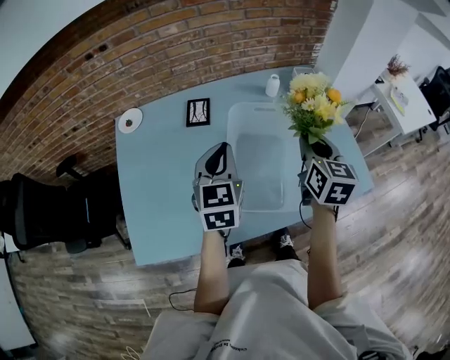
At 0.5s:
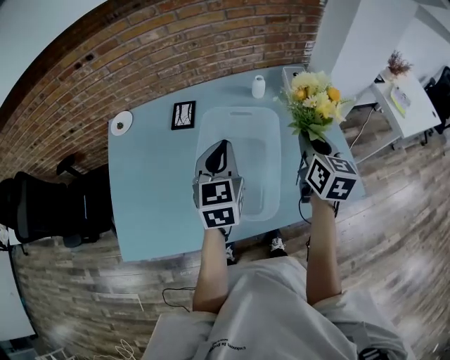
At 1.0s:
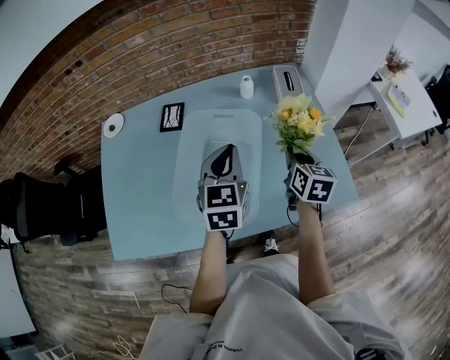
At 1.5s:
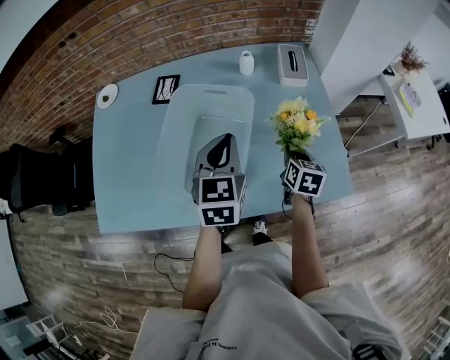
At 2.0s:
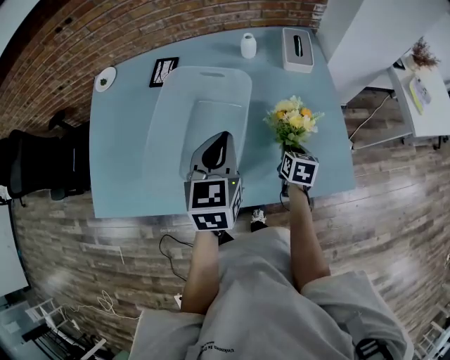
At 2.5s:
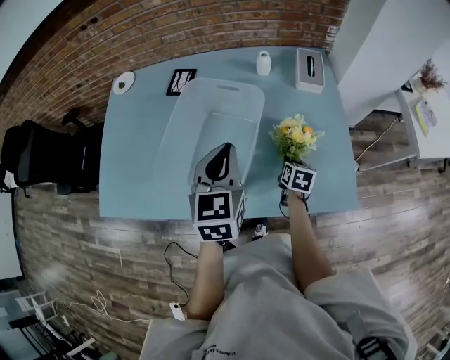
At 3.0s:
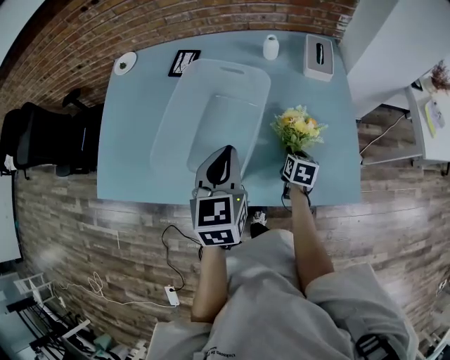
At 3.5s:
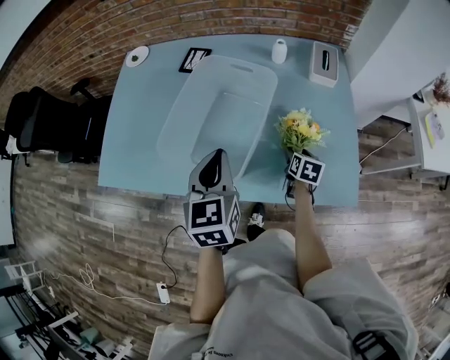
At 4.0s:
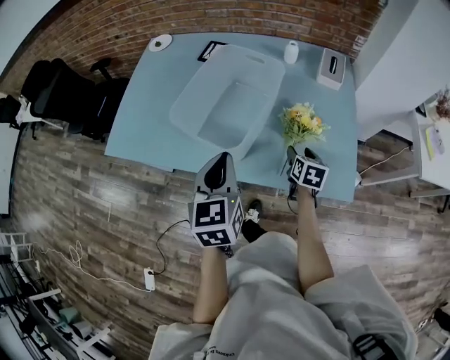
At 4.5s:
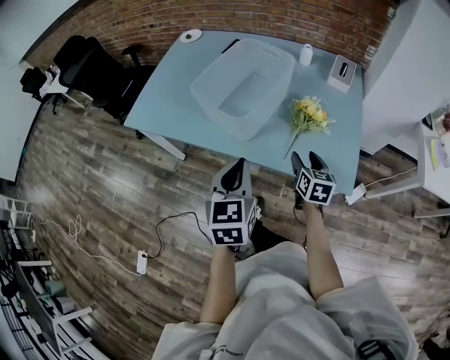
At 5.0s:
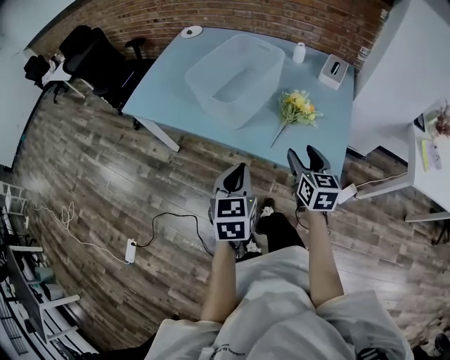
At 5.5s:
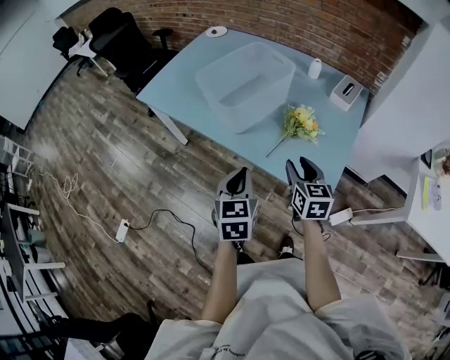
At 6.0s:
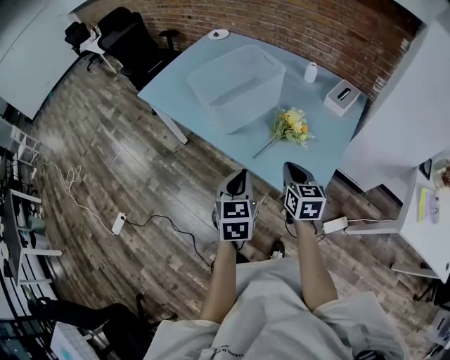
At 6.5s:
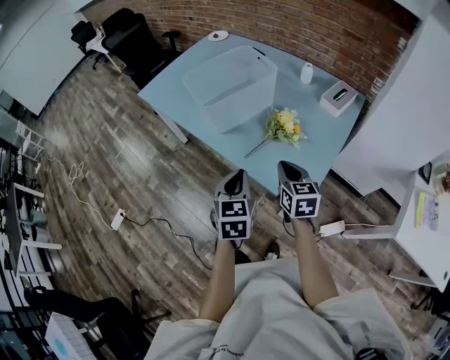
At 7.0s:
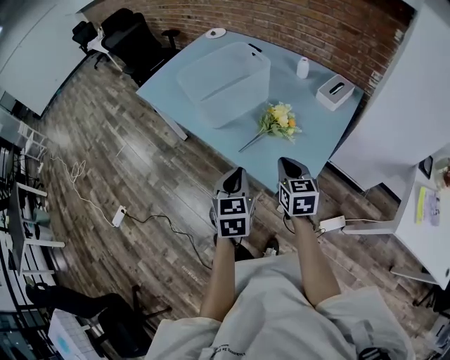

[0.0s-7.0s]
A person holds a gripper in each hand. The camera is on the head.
0.0s to 2.0s: The right gripper heads downward and to the right, covering about 35 cm, and swivels about 30 degrees. The left gripper is displaced to the right by some 20 cm.
2.0s to 3.5s: The right gripper opens its fingers. Meanwhile the left gripper heads backward and to the left, covering some 10 cm.
3.5s to 5.0s: The right gripper is displaced backward and upward by roughly 30 cm, and swivels approximately 40 degrees, while the left gripper shifts some 25 cm backward.
5.0s to 7.0s: The right gripper moves to the right, about 10 cm, rotates approximately 20 degrees, and closes its fingers. The left gripper goes about 15 cm to the right.

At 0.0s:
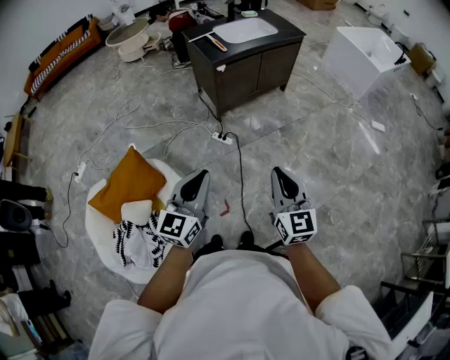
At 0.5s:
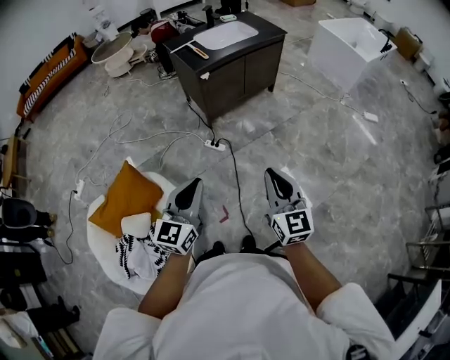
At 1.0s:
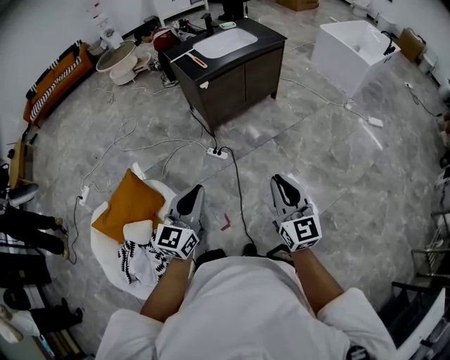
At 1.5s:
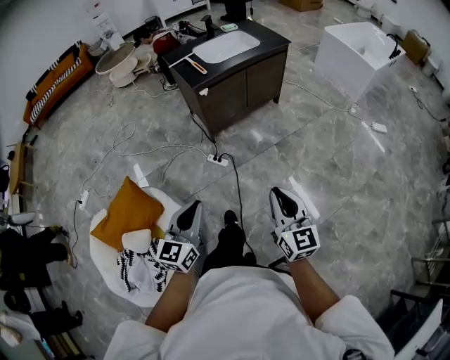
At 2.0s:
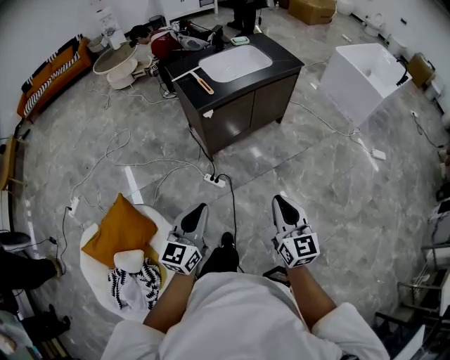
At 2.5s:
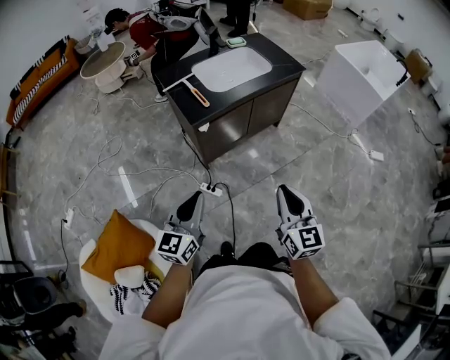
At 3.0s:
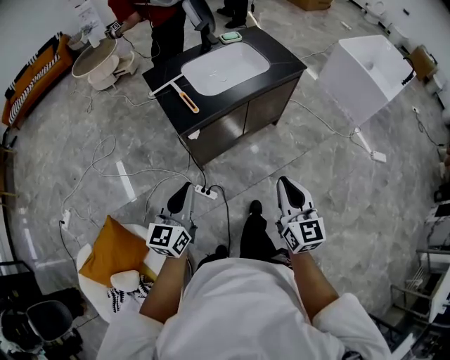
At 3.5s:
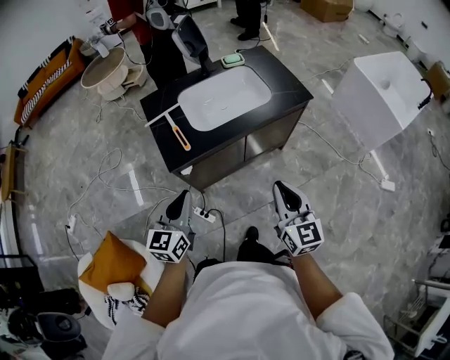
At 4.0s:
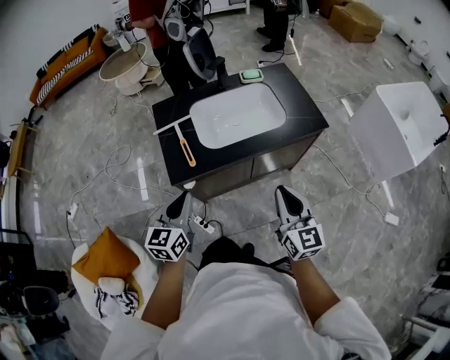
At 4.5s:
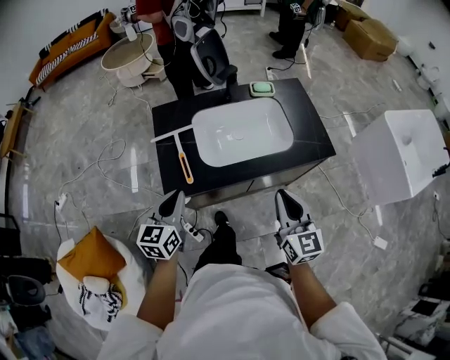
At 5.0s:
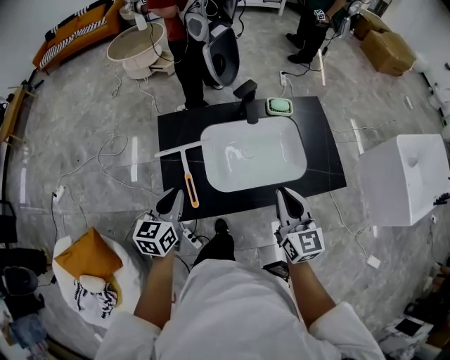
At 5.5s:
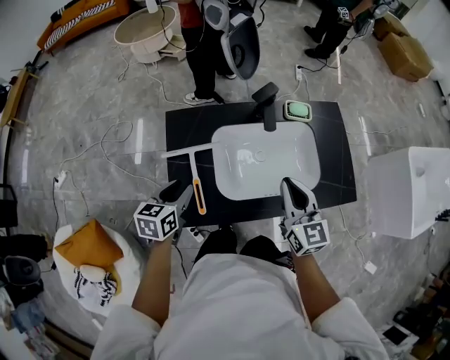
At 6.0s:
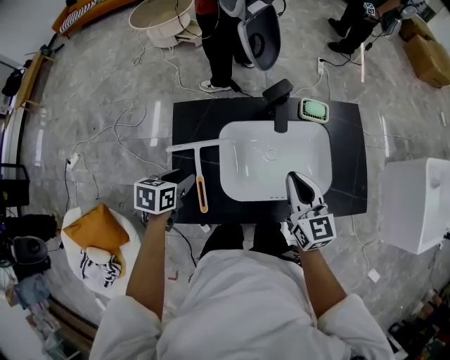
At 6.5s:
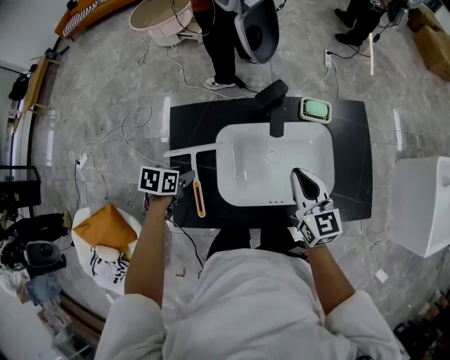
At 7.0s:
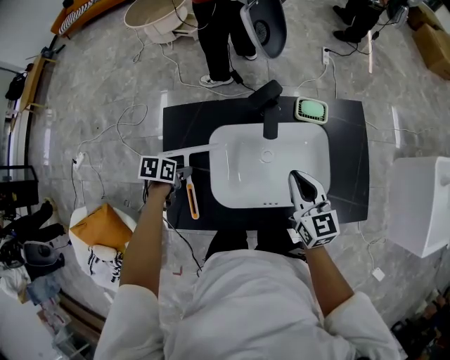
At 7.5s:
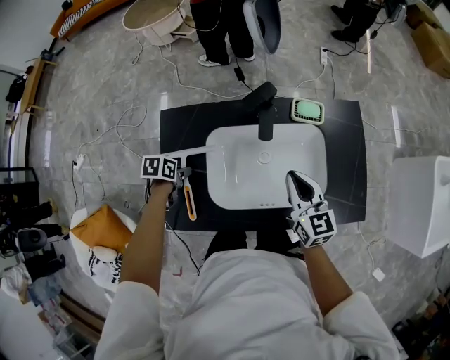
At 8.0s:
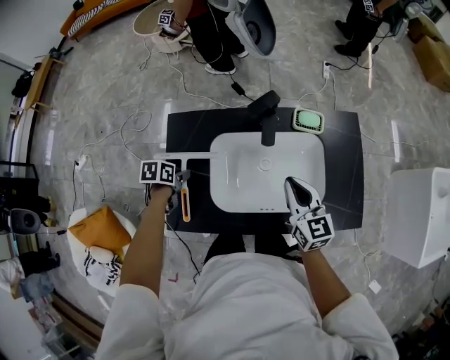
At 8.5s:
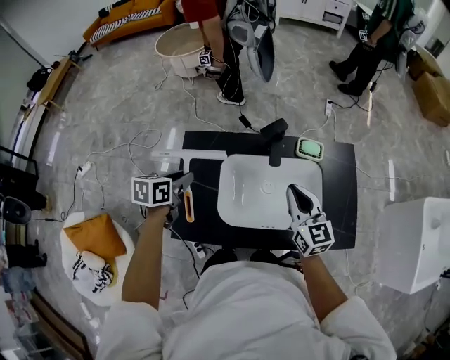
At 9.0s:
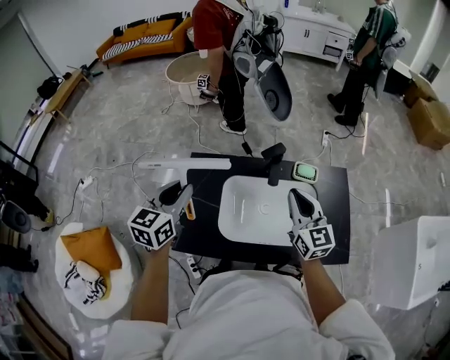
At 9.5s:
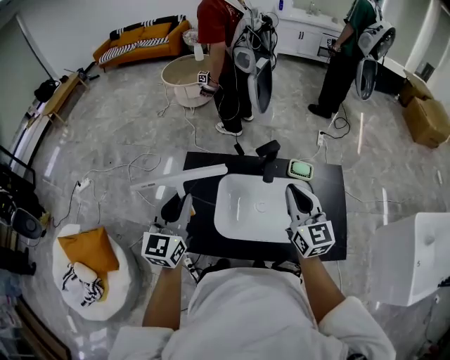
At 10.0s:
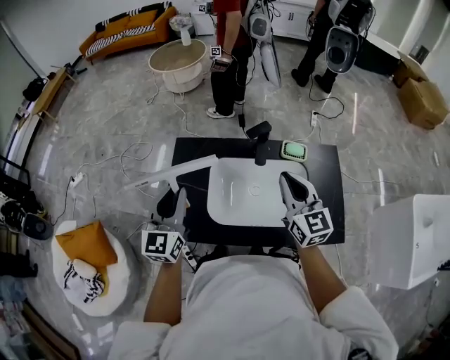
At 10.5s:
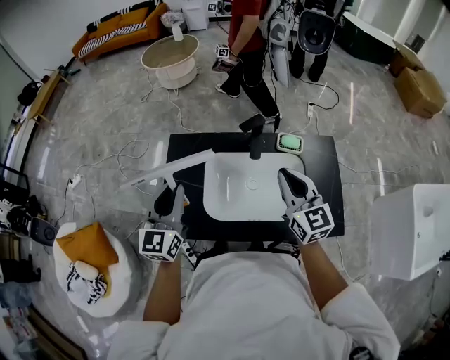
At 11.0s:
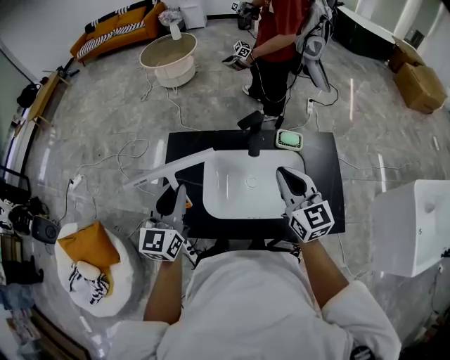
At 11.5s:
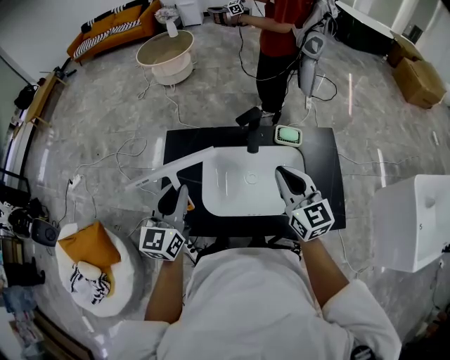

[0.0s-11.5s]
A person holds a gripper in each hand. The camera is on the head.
0.0s to 2.0s: Both grippers move forward, roughly 25 cm.
2.0s to 4.0s: The two grippers travel together, forward, some 50 cm. The left gripper rotates about 20 degrees.
4.0s to 6.0s: The right gripper shifts approximately 35 cm forward, and turns by about 20 degrees. The left gripper travels forward and downward by some 30 cm, points its fingers some 40 degrees further downward, and opens up.
6.0s to 7.5s: The left gripper is displaced downward and forward by approximately 10 cm, and swivels about 20 degrees. Meanwhile the right gripper moves forward, some 5 cm.
7.5s to 9.5s: The left gripper goes roughly 35 cm upward, and angles its fingers upward, by approximately 60 degrees; the right gripper is displaced upward by some 15 cm, and changes its angle by roughly 20 degrees.
9.5s to 11.5s: The left gripper shifts by approximately 5 cm.

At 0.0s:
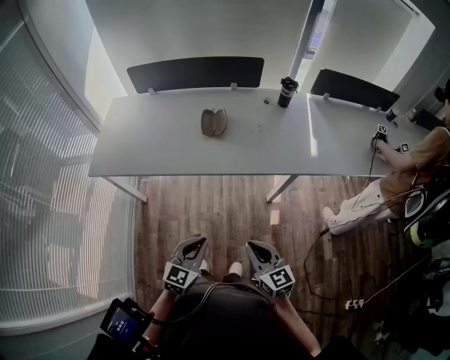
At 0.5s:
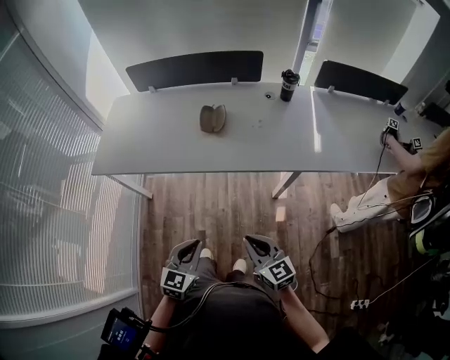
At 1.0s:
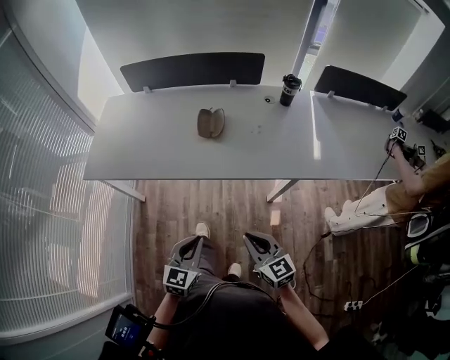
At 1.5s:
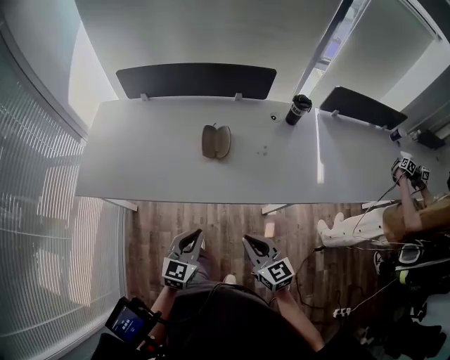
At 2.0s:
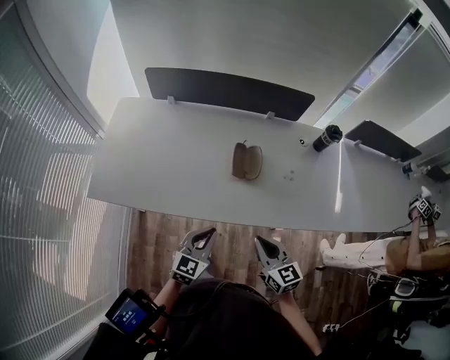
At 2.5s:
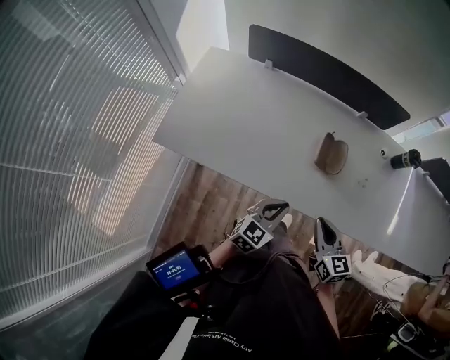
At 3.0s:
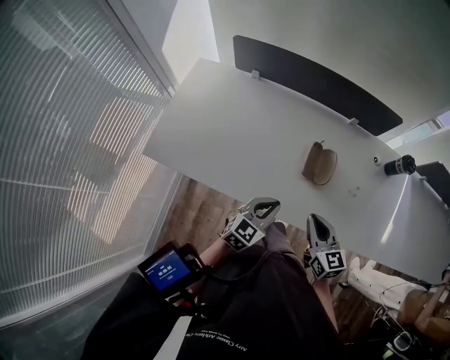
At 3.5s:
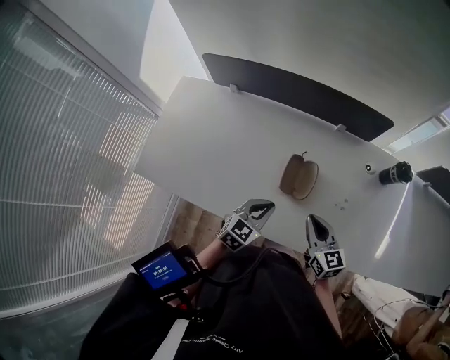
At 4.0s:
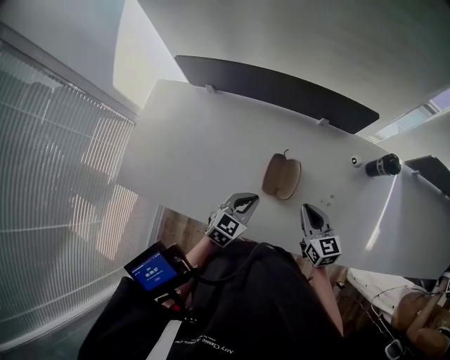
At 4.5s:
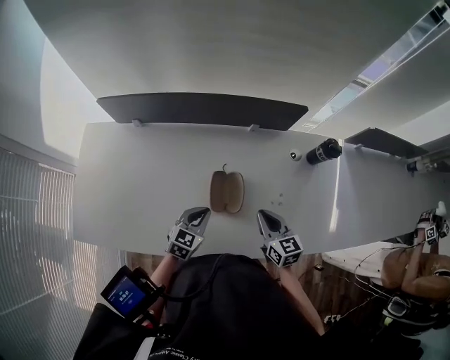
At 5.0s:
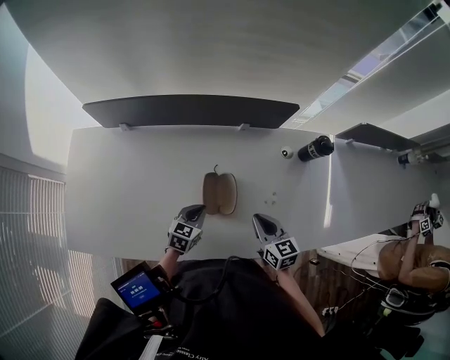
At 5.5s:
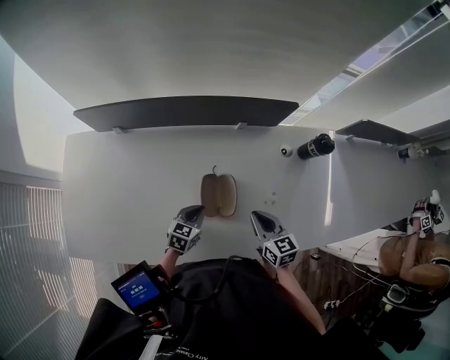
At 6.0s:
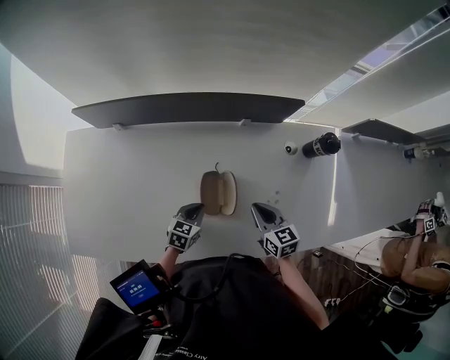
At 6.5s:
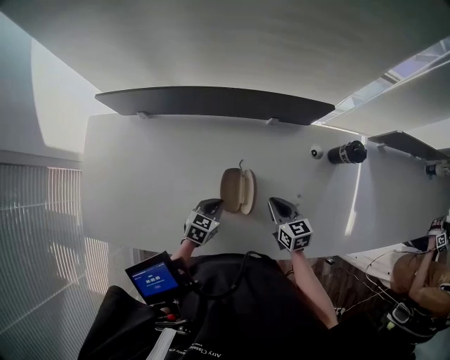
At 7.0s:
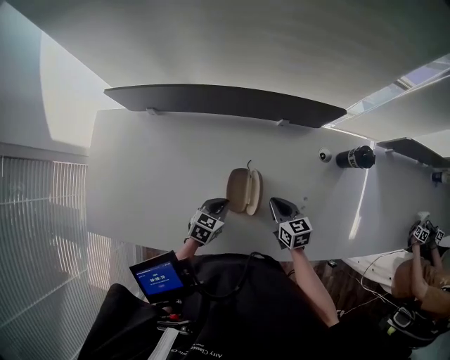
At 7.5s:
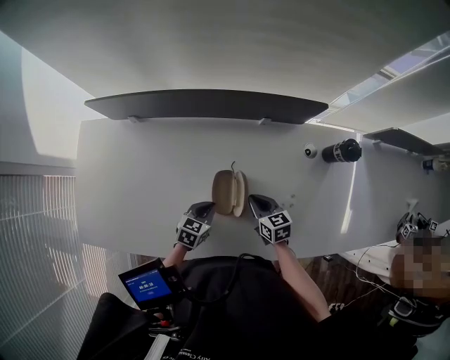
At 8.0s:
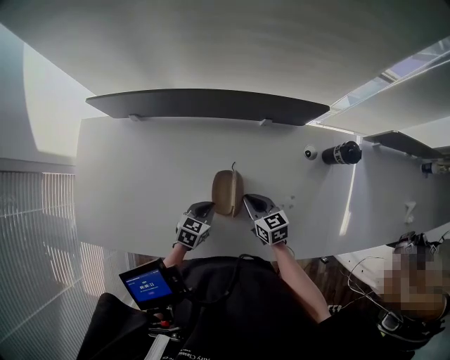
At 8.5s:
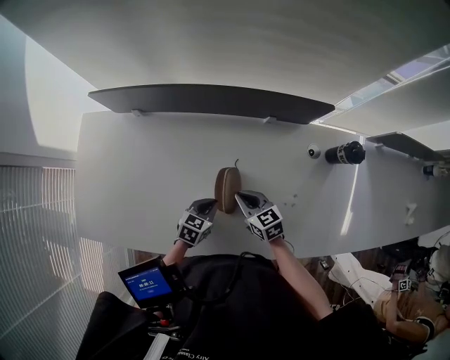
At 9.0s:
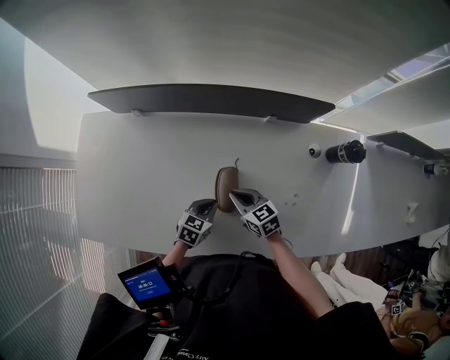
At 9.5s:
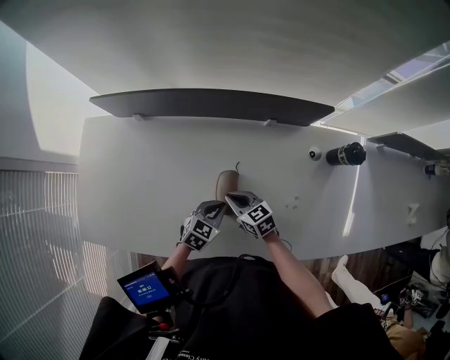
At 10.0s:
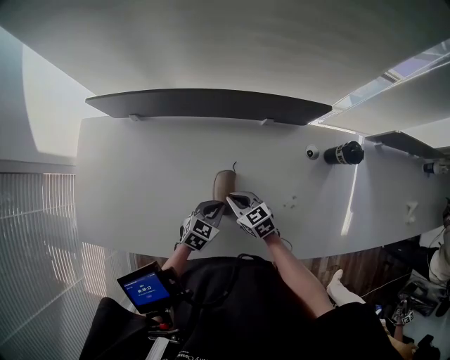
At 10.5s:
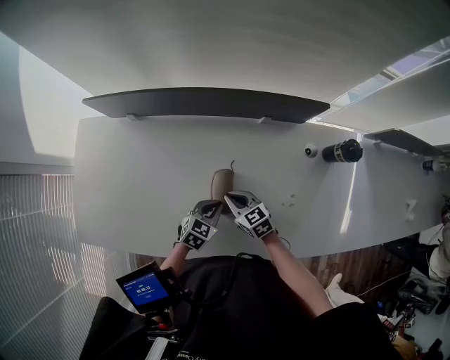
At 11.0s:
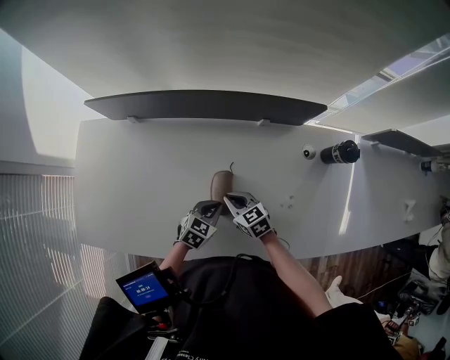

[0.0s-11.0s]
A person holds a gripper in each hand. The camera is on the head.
0.0s to 2.0s: The grippers both shift forward by approximately 30 cm.
2.0s to 3.5s: Both grippers travel together forward, some 20 cm.
3.5s to 5.5s: The left gripper heads downward and forward, covering approximately 15 cm, while the right gripper goes roughly 10 cm forward and downward.
5.5s to 7.5s: The right gripper travels downward, to the left and forward by approximately 10 cm.
7.5s to 9.0s: The right gripper travels to the left by roughly 10 cm.
9.0s to 11.0s: The grippers stay close to where they were, moving slightly.
